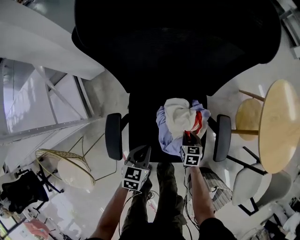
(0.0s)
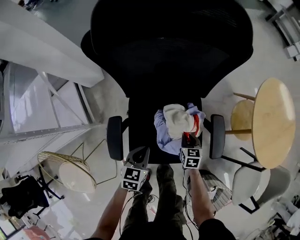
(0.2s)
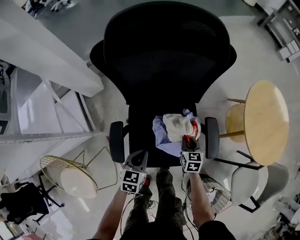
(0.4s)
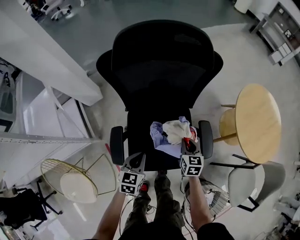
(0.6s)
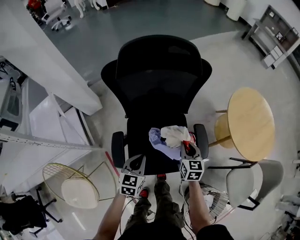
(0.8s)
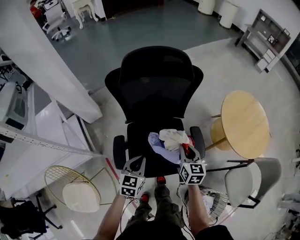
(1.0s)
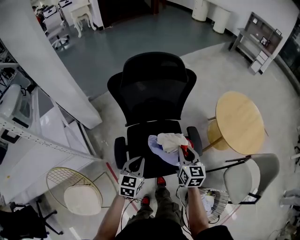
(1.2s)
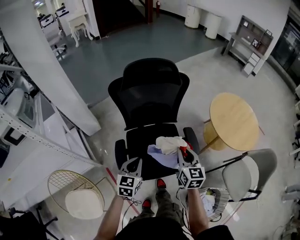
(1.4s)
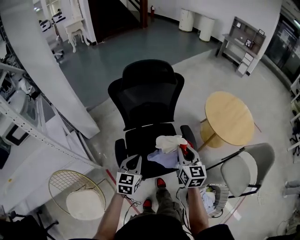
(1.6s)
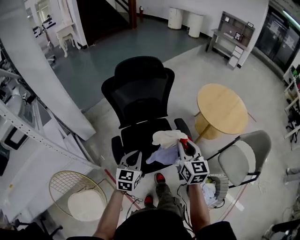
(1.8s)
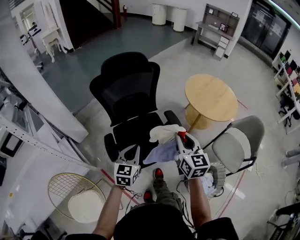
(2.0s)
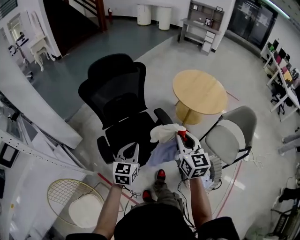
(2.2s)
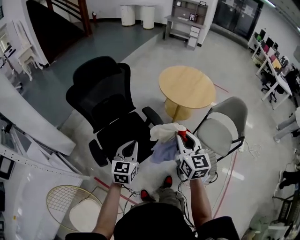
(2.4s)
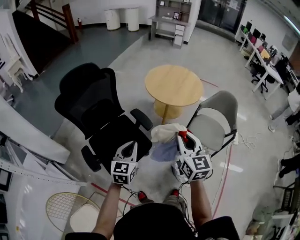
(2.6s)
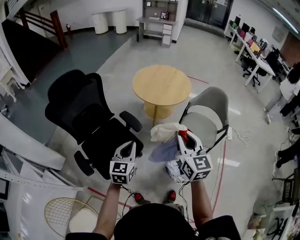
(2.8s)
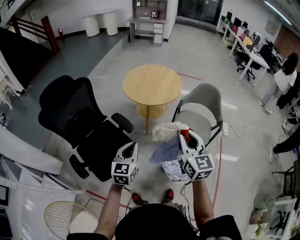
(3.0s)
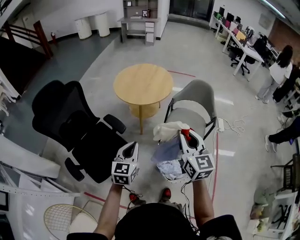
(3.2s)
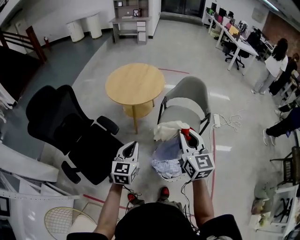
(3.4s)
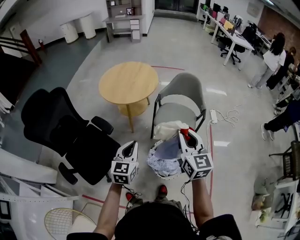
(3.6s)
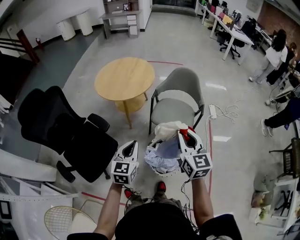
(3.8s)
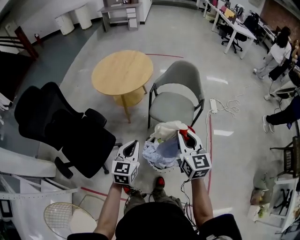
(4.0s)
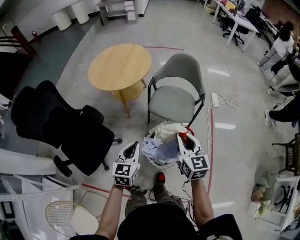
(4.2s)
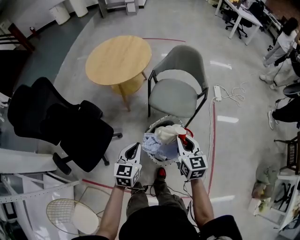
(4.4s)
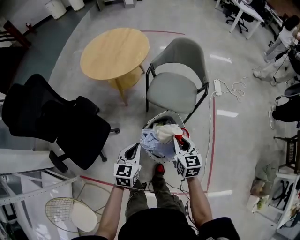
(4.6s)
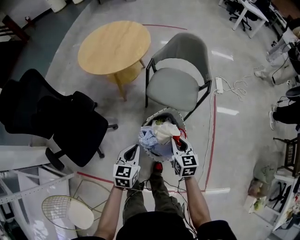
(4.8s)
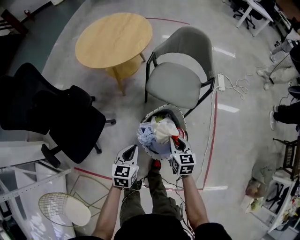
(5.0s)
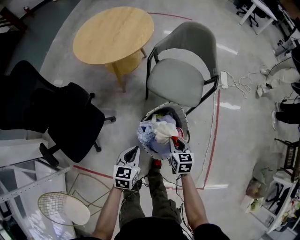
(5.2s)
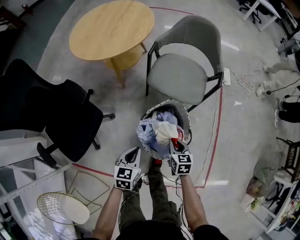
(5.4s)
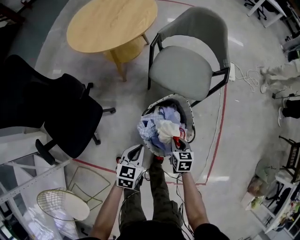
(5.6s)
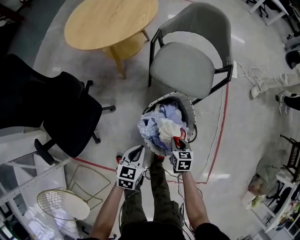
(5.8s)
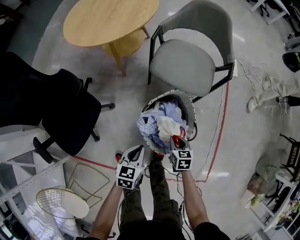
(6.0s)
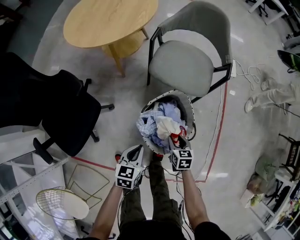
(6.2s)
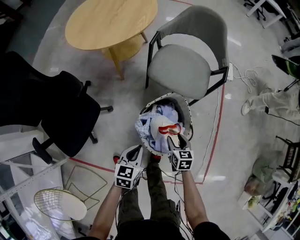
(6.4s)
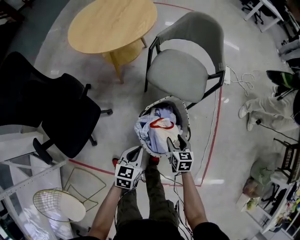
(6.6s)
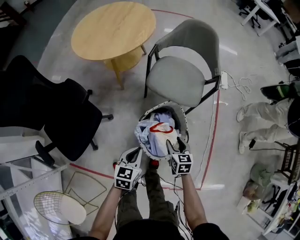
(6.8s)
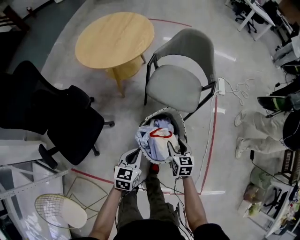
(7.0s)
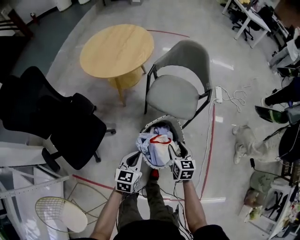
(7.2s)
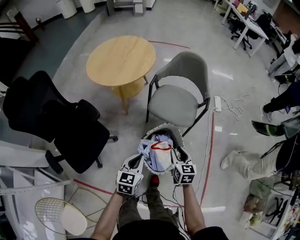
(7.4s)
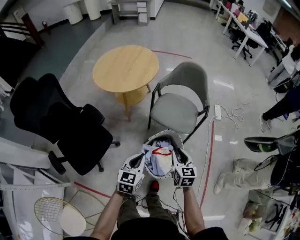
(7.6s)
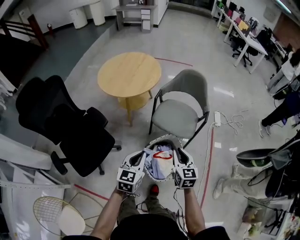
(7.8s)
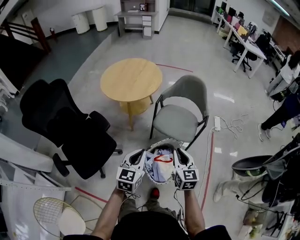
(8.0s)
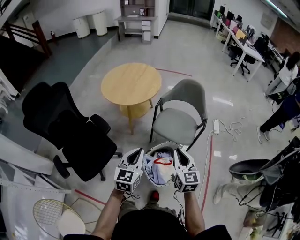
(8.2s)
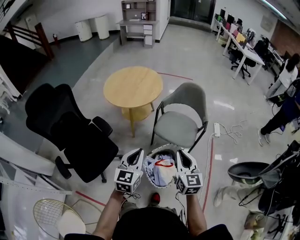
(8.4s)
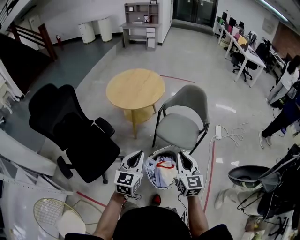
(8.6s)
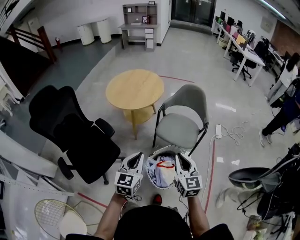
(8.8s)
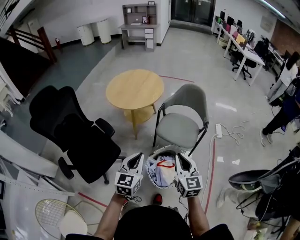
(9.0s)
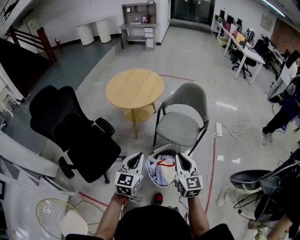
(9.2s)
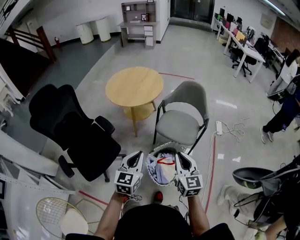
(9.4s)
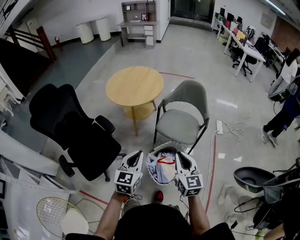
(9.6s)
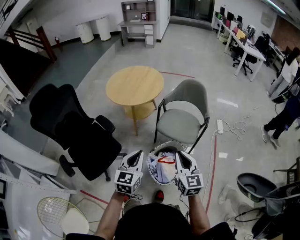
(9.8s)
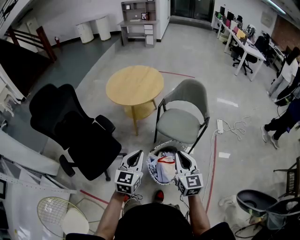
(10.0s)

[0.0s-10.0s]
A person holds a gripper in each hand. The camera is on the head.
0.0s to 1.4s: The right gripper shifts about 50 cm upward, and angles its fingers upward, by about 40 degrees, while the left gripper shifts about 25 cm upward, and swivels approximately 20 degrees.
1.4s to 2.8s: The left gripper shifts by some 30 cm, and turns by some 30 degrees, while the right gripper ends up roughly 40 cm from where it was, and changes its angle by about 30 degrees.
2.8s to 4.2s: The right gripper shifts about 30 cm to the right and downward. The left gripper moves to the right, roughly 30 cm.
4.2s to 5.8s: The right gripper travels downward by some 40 cm, and points its fingers about 40 degrees further downward, while the left gripper heads downward, covering some 25 cm, and swivels roughly 20 degrees.
5.8s to 7.2s: The grippers both shift upward by about 15 cm. The right gripper opens up.
7.2s to 8.6s: The two grippers go about 25 cm upward. The left gripper rotates approximately 20 degrees. Meanwhile the right gripper turns by roughly 30 degrees, and closes.
8.6s to 10.0s: There are only small adjustments of the grippers.

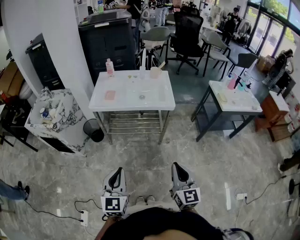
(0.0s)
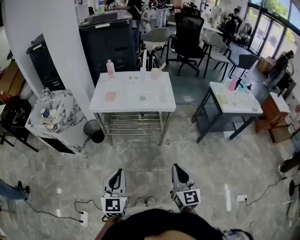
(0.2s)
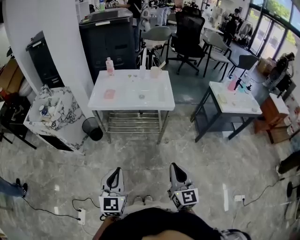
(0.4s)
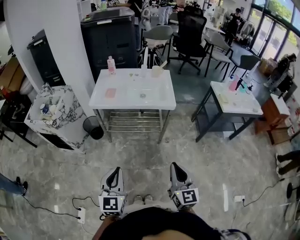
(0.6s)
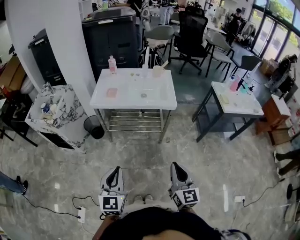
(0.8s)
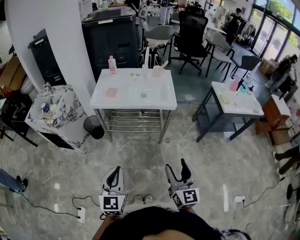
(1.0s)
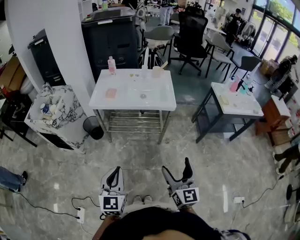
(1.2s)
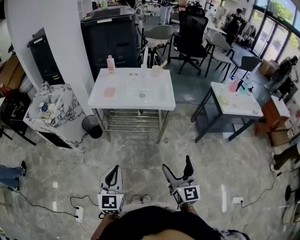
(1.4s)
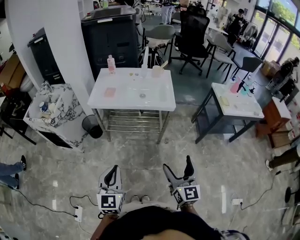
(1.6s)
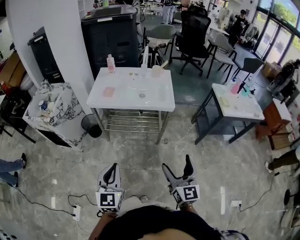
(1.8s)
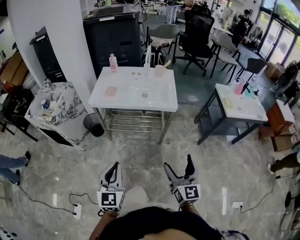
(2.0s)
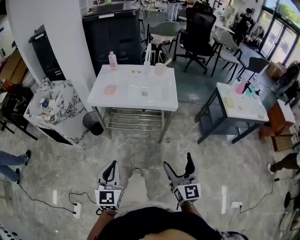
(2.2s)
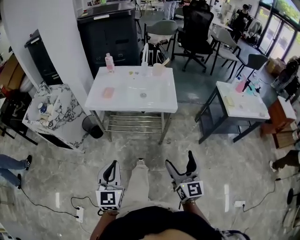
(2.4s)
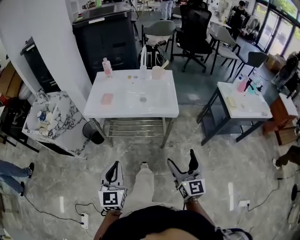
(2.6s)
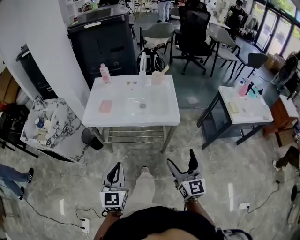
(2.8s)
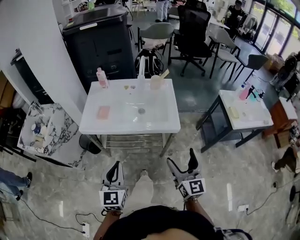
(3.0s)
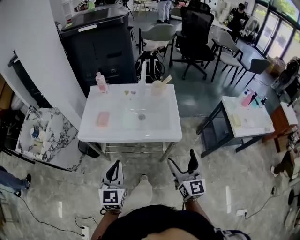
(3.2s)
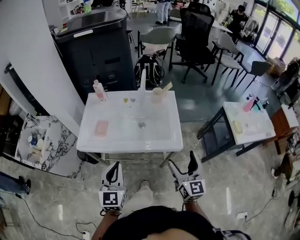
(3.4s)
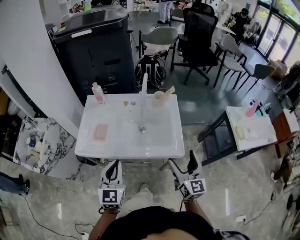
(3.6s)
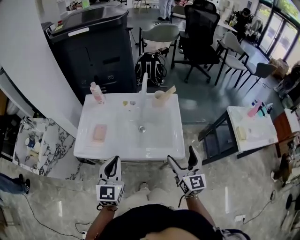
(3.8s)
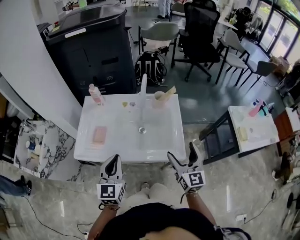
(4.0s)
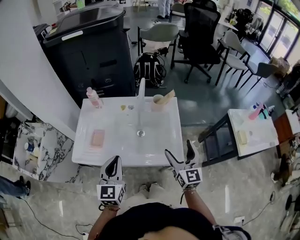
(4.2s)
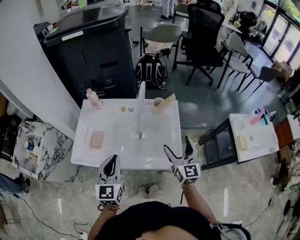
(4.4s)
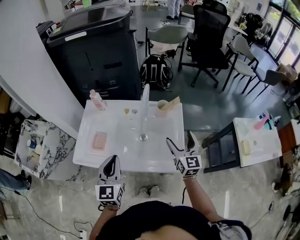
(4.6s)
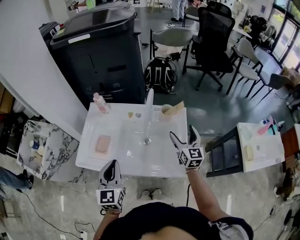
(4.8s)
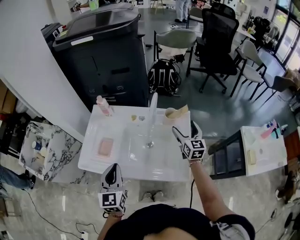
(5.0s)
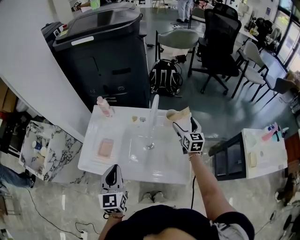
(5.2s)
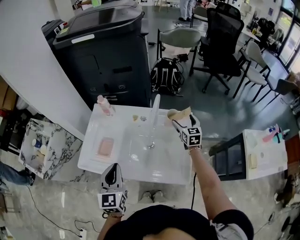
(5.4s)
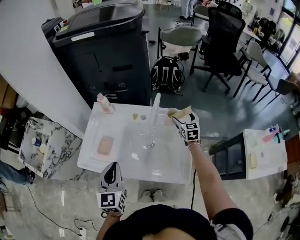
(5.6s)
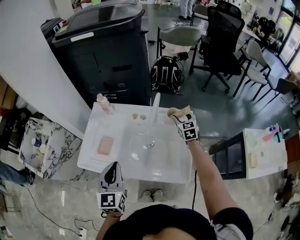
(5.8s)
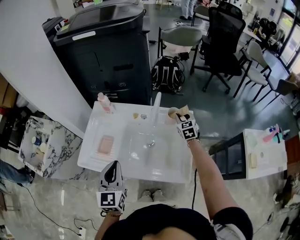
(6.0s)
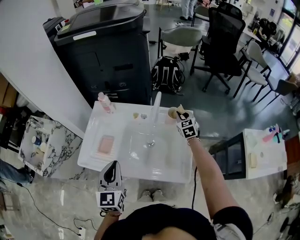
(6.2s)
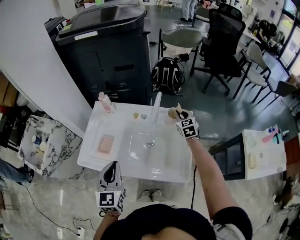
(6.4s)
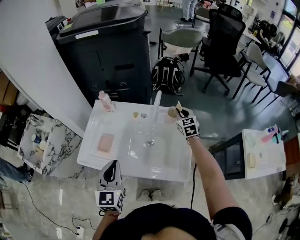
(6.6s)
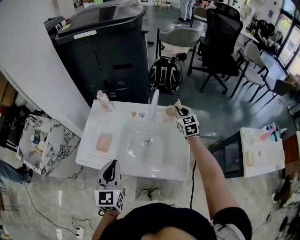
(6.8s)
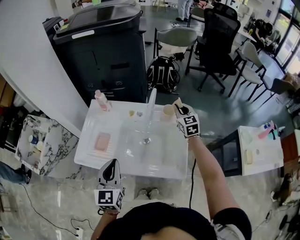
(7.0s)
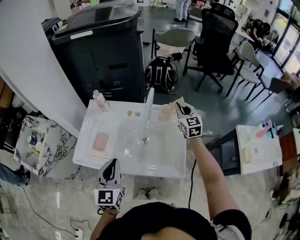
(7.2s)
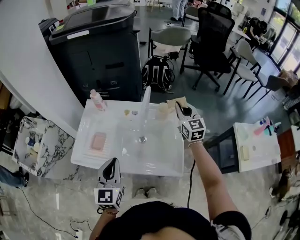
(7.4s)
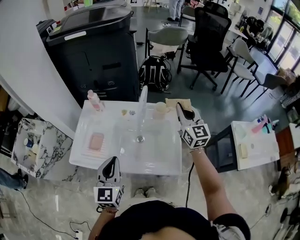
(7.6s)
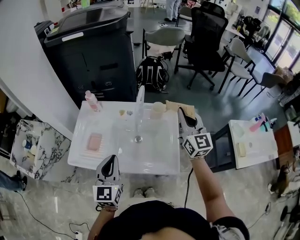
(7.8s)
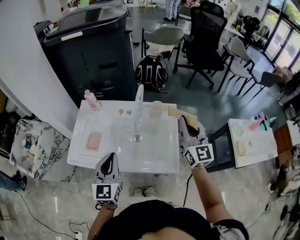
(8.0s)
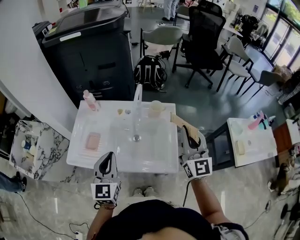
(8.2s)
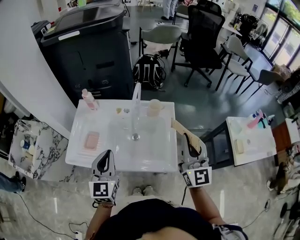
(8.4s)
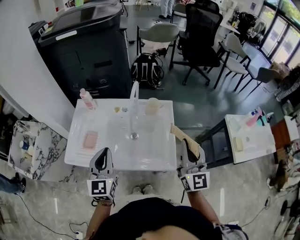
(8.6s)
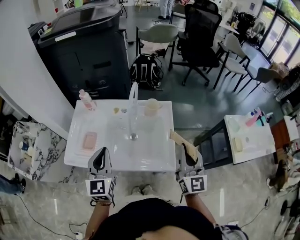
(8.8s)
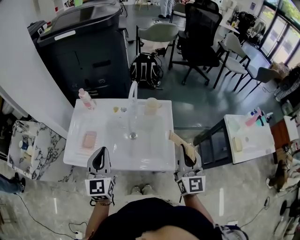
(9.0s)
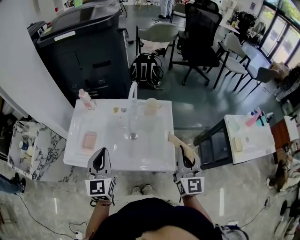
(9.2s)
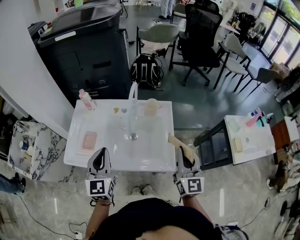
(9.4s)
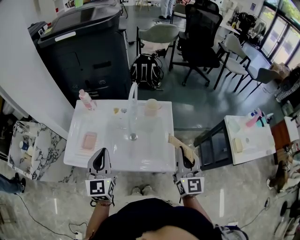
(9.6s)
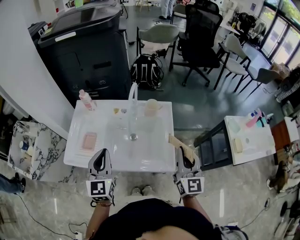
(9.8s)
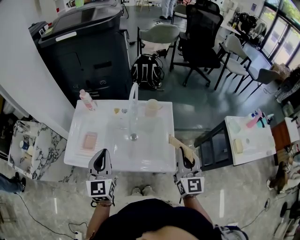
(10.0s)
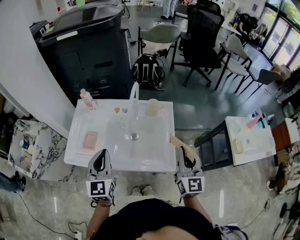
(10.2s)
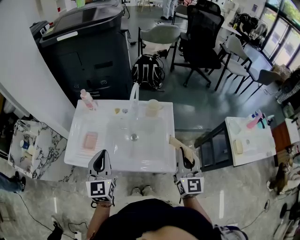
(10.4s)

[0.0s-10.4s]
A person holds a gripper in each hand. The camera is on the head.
0.0s to 1.4s: The right gripper opens up.
1.4s to 3.0s: Both grippers move forward, approximately 25 cm.
3.0s to 4.4s: The grippers both shift forward by approximately 30 cm.
4.4s to 6.0s: The right gripper moves forward, some 30 cm, swivels approximately 30 degrees, and closes.
6.0s to 7.4s: The right gripper goes about 15 cm upward and backward, and changes its angle by some 20 degrees.
7.4s to 9.0s: The right gripper is displaced backward by approximately 25 cm.
9.0s to 10.4s: The grippers move only a little.

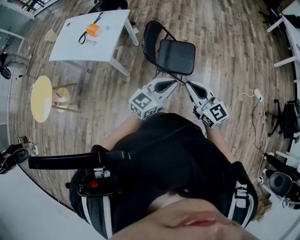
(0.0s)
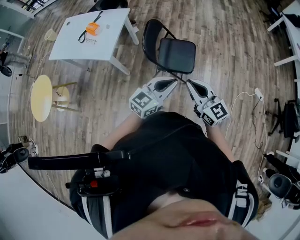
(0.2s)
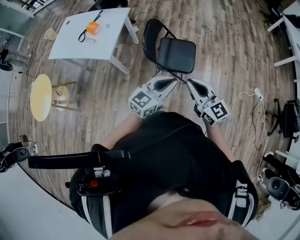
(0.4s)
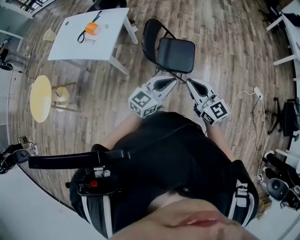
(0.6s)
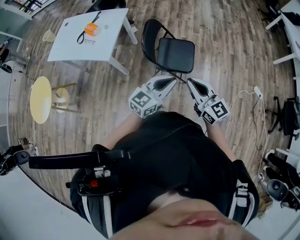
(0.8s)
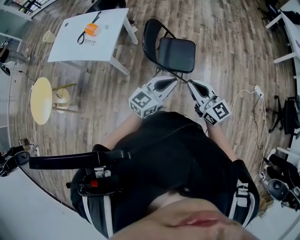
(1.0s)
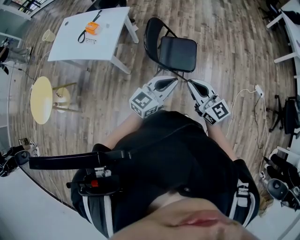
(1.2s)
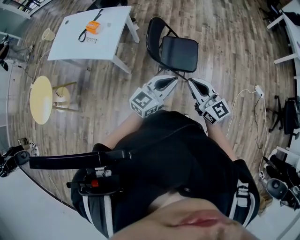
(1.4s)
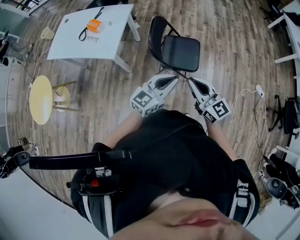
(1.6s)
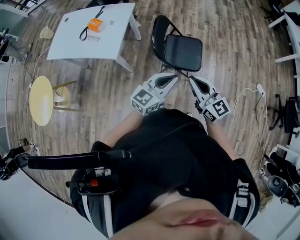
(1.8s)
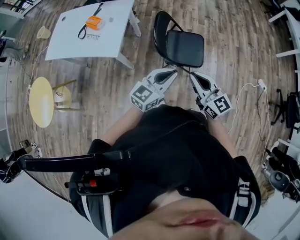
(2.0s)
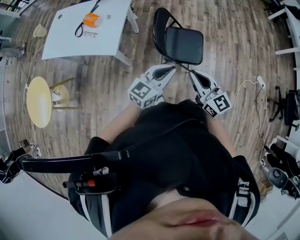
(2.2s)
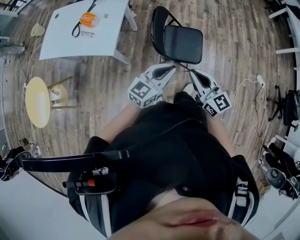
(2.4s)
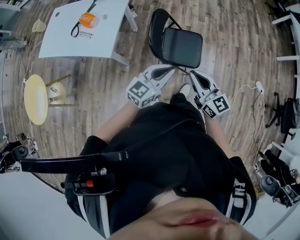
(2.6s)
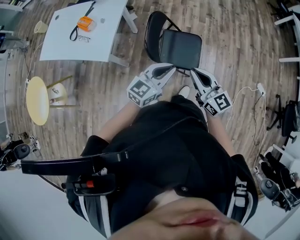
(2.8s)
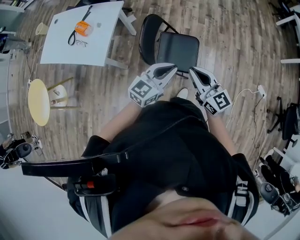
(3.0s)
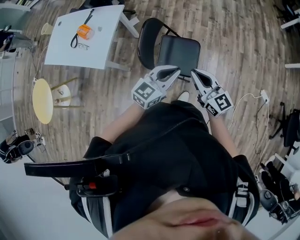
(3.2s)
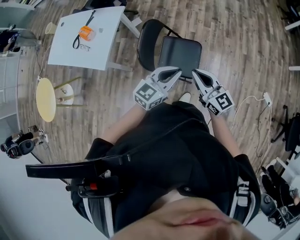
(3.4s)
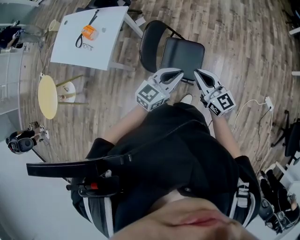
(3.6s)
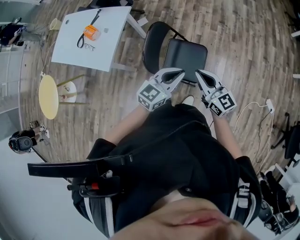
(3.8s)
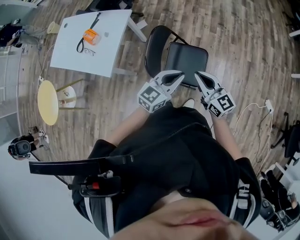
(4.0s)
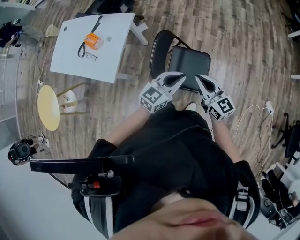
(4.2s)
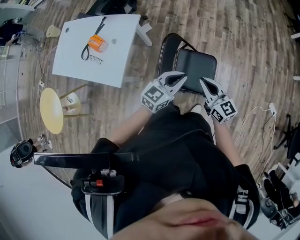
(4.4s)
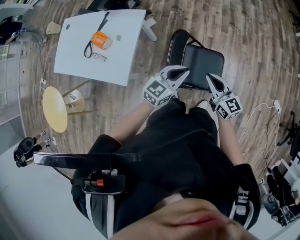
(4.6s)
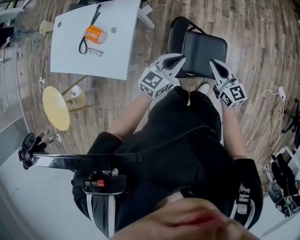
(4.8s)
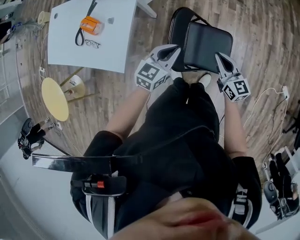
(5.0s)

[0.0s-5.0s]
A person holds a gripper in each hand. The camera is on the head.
0.0s to 1.6s: Both grippers move to the left, some 5 cm.
1.6s to 3.4s: Both grippers move forward and to the right, some 25 cm.
3.4s to 5.0s: The left gripper travels to the left, forward and downward by roughly 30 cm, while the right gripper heads forward, downward and to the left, covering about 25 cm.
